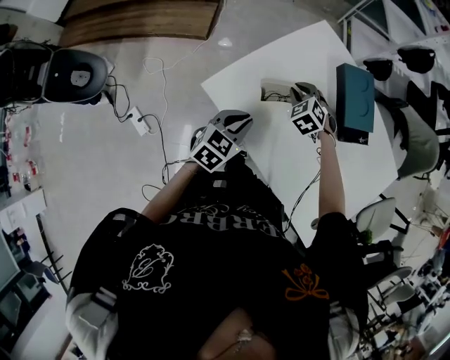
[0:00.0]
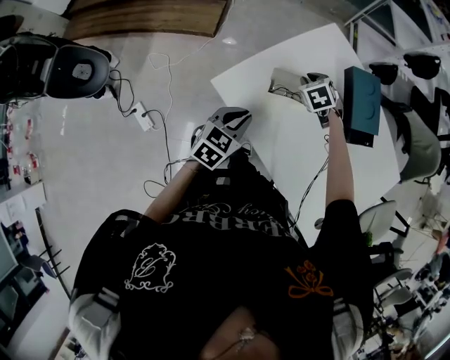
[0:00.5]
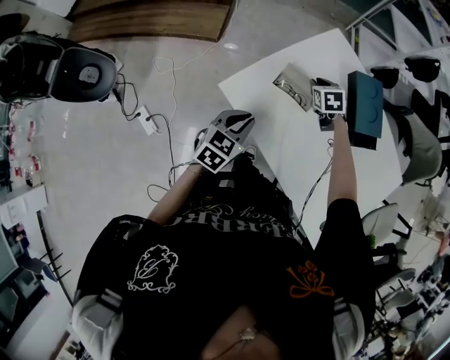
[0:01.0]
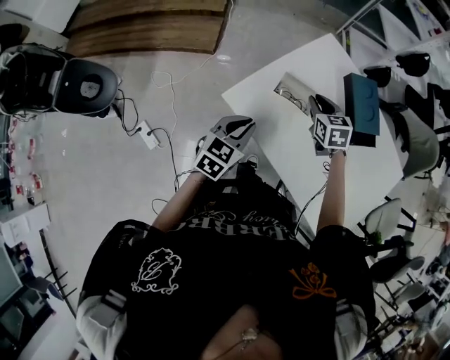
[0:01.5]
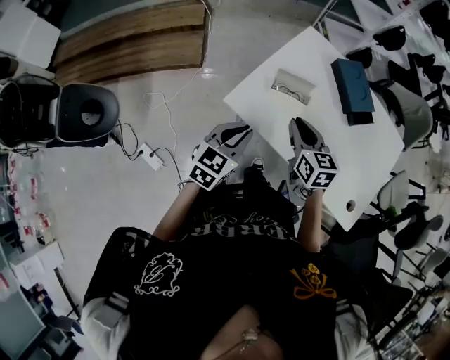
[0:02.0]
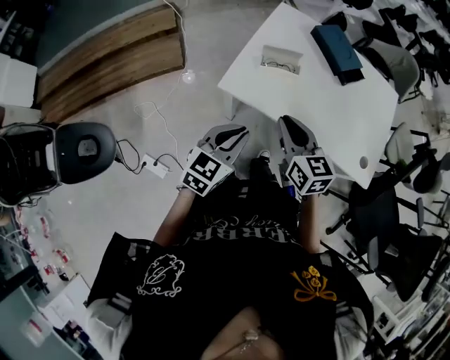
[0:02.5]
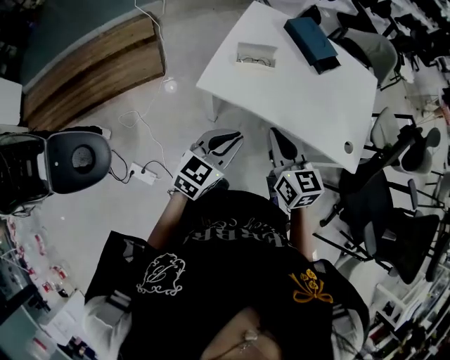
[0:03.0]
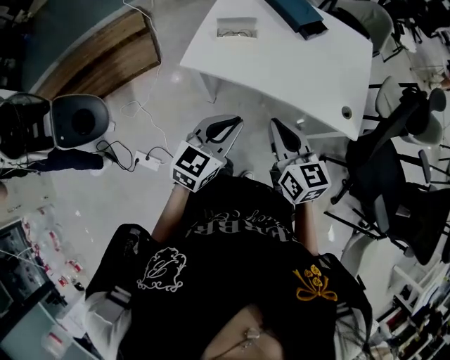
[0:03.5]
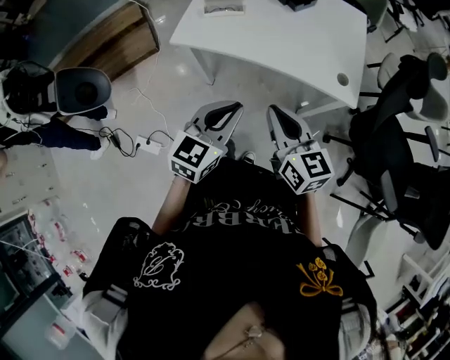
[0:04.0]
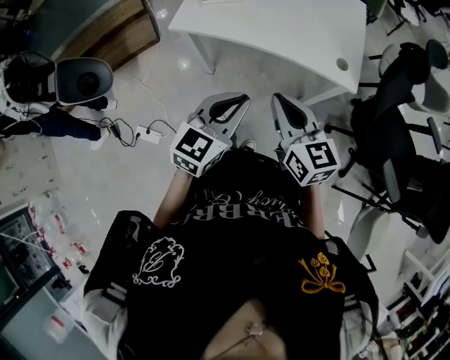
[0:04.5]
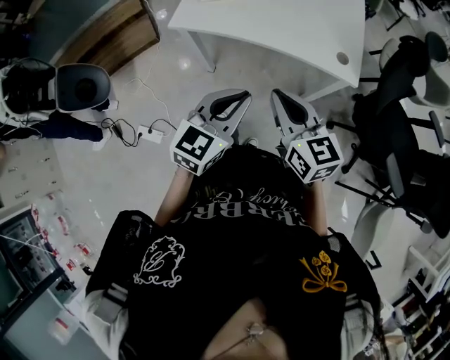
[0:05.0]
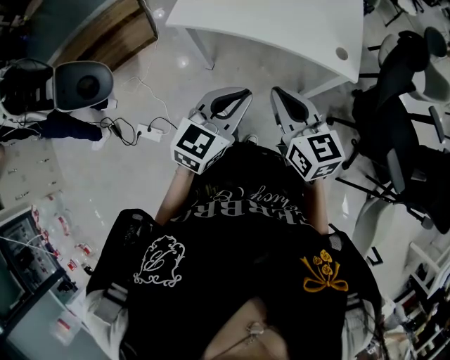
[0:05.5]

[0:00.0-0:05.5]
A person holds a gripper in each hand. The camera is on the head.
0:00.0 to 0:02.0: The right gripper moves backward and upward, approximately 25 cm, and twists about 60 degrees clockwise, seen from behind. The left gripper travels to the left, upward and backward by some 15 cm.
0:02.0 to 0:03.5: The two grippers go approximately 25 cm backward and to the right.
0:03.5 to 0:05.5: Both grippers travel together backward and to the right, about 15 cm.

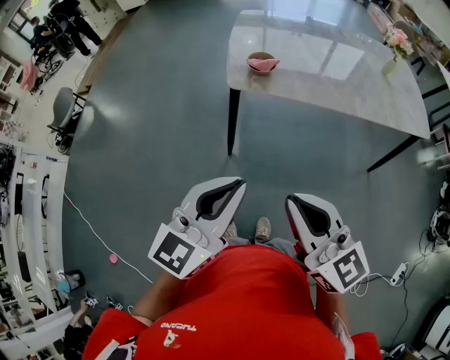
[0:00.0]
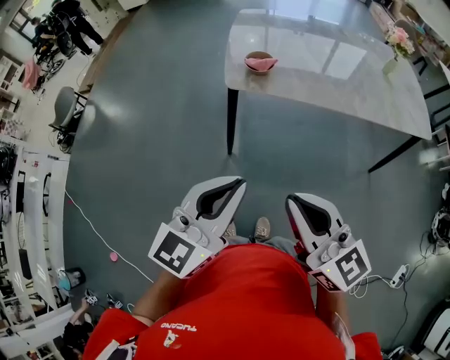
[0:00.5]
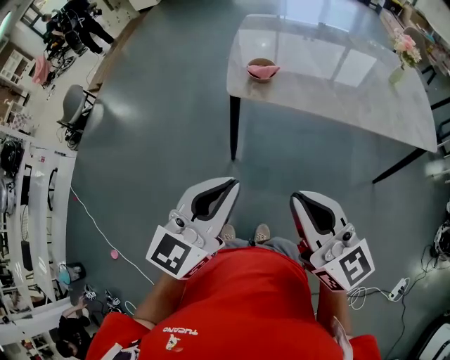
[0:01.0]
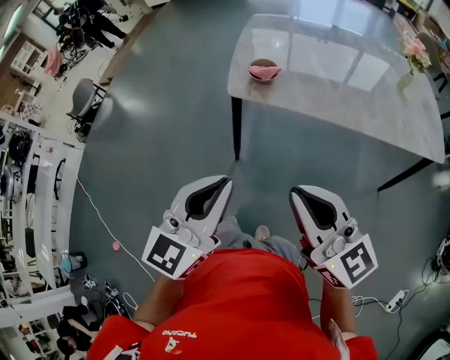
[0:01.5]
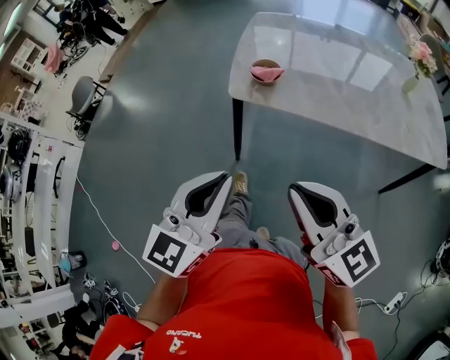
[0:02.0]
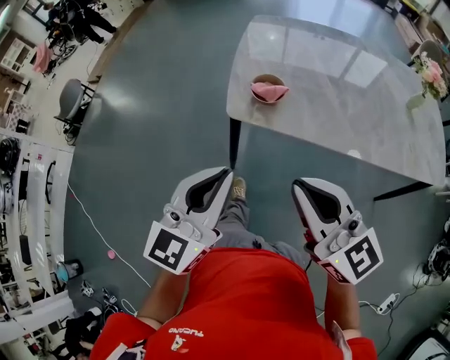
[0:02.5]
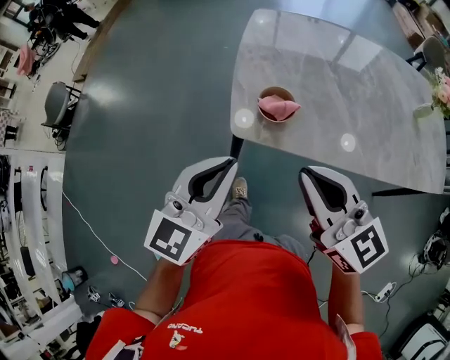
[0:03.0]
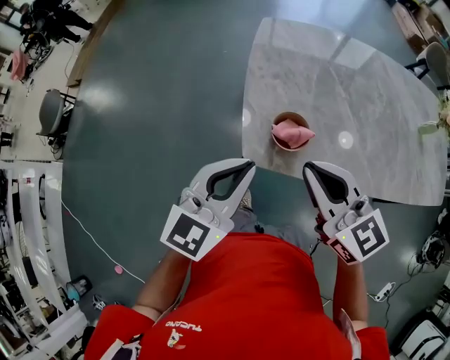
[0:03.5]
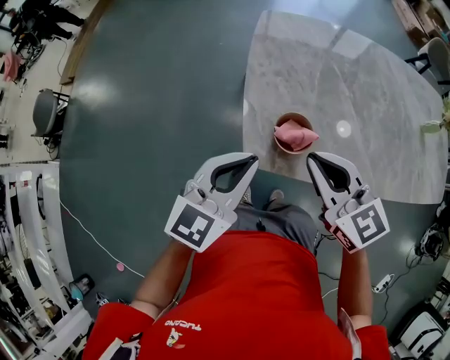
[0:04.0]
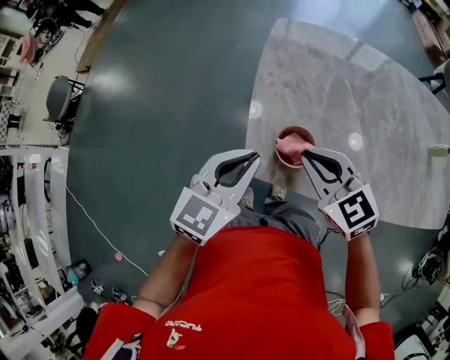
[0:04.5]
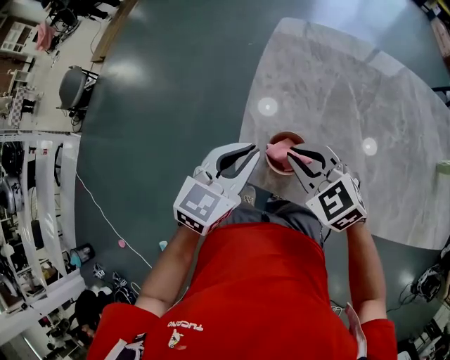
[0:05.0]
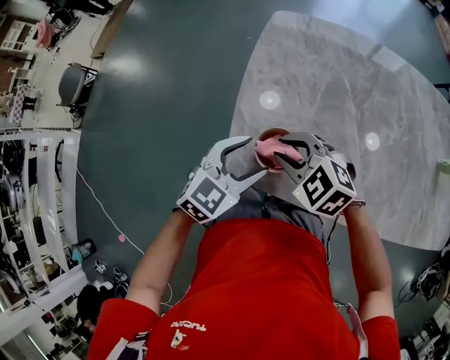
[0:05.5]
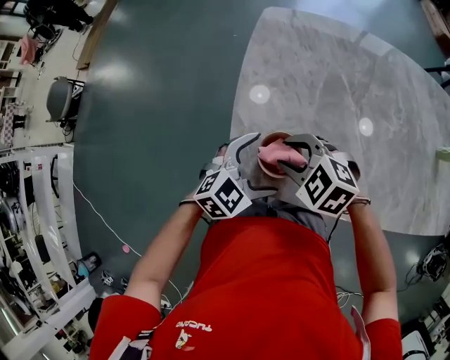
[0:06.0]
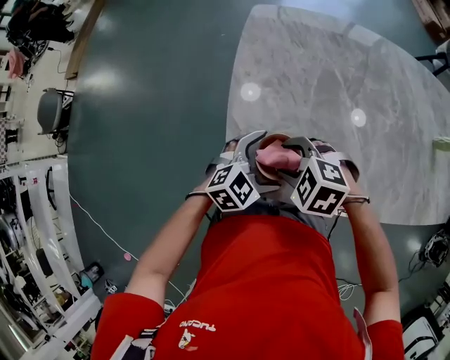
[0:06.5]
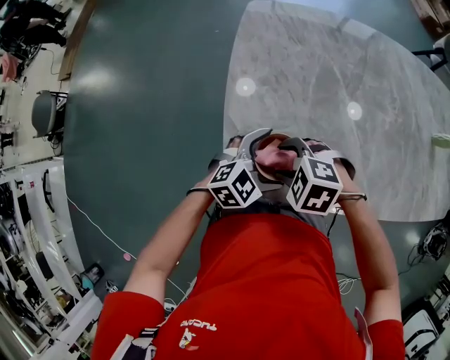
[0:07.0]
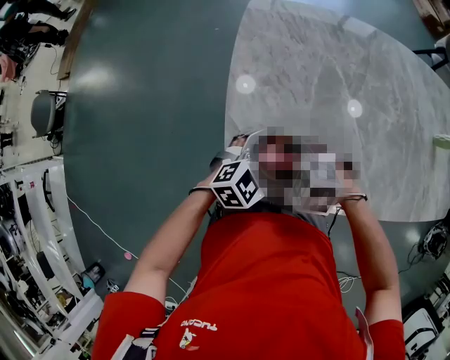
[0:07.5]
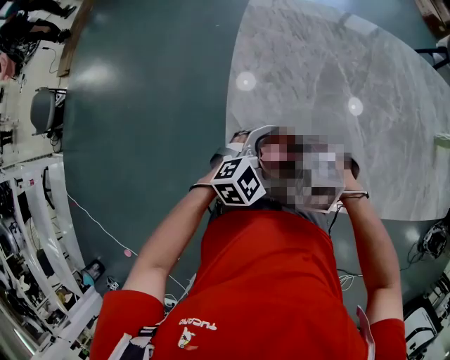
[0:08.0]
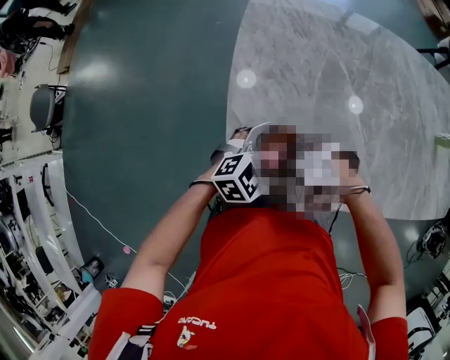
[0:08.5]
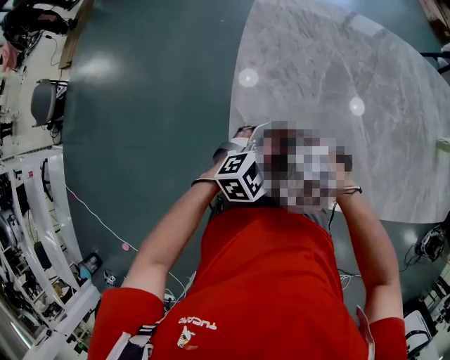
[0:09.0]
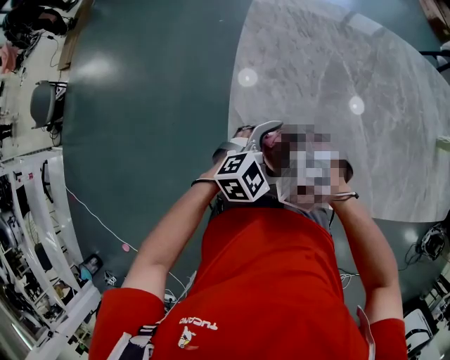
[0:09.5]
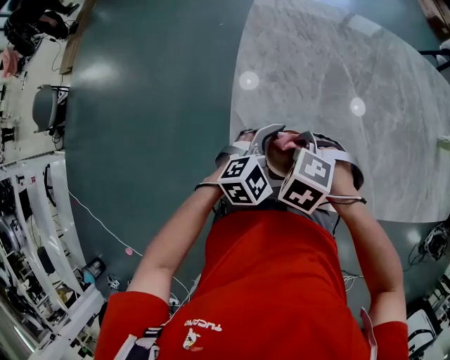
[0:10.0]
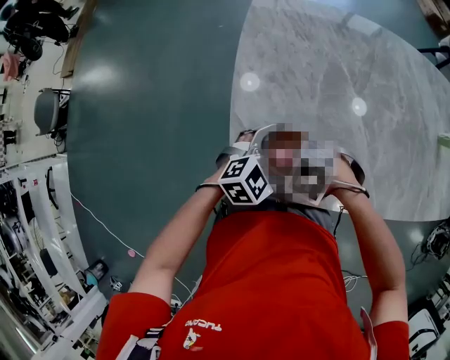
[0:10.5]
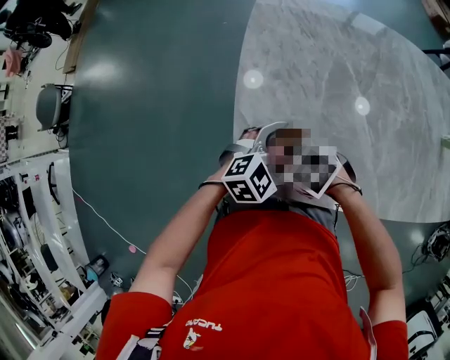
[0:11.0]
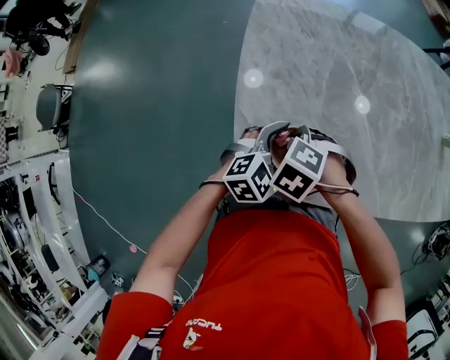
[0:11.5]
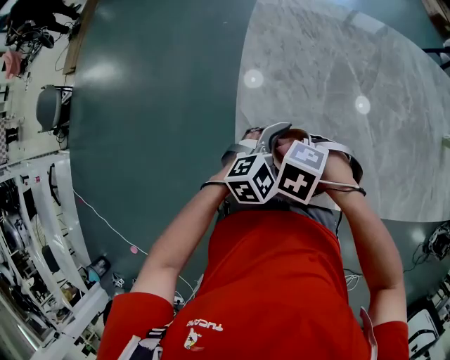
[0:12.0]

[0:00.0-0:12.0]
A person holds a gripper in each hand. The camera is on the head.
0:00.0 to 0:02.0: The right gripper travels forward and to the right by approximately 10 cm. Meanwhile the left gripper travels forward by approximately 5 cm.
0:02.0 to 0:04.0: Both grippers move forward, roughly 35 cm. The right gripper changes its angle by roughly 20 degrees.
0:04.0 to 0:06.0: Both grippers travel together downward, about 15 cm. The right gripper points its fingers roughly 30 degrees further downward, and opens. The left gripper turns by some 30 degrees, and opens its fingers.
0:06.0 to 0:08.0: The right gripper is displaced downward by approximately 5 cm. Meanwhile the left gripper ends up approximately 5 cm from where it was.
0:08.0 to 0:10.0: There are only small adjustments of the grippers.

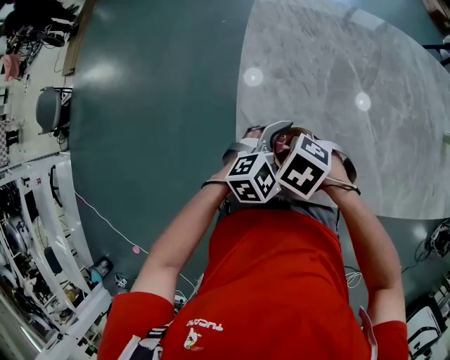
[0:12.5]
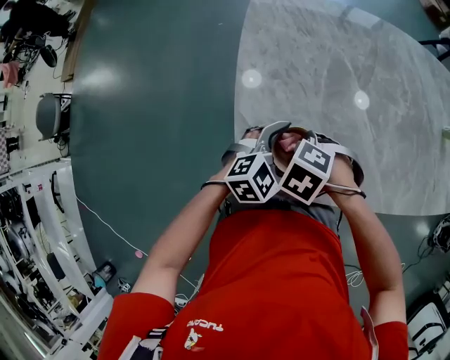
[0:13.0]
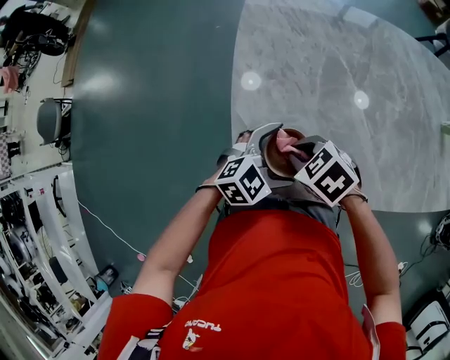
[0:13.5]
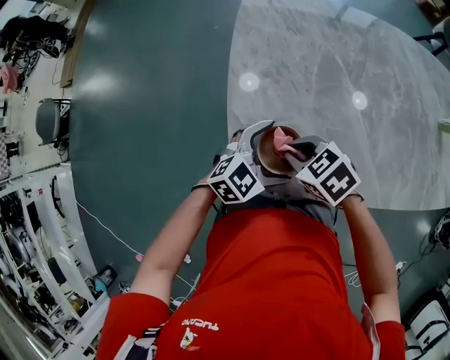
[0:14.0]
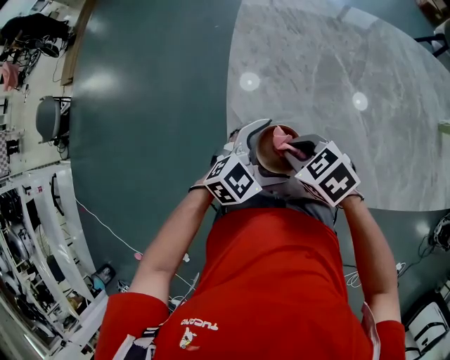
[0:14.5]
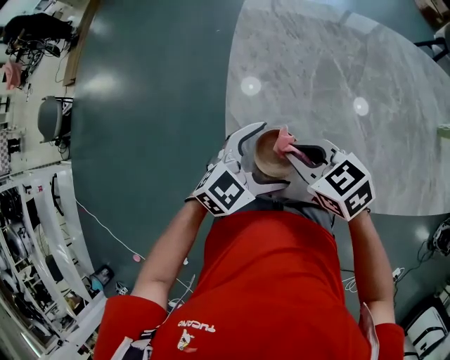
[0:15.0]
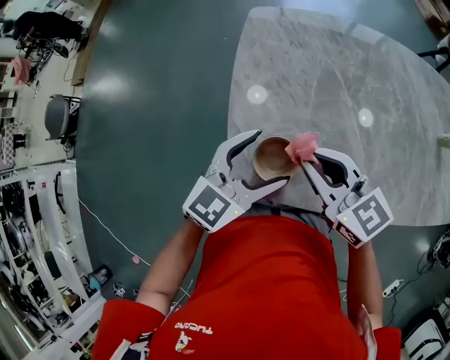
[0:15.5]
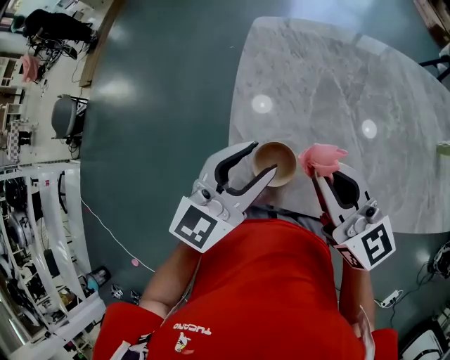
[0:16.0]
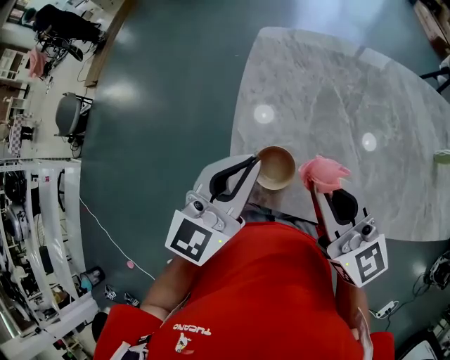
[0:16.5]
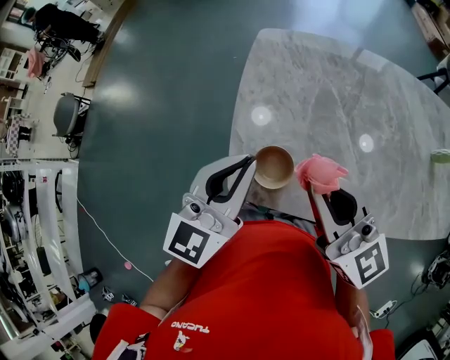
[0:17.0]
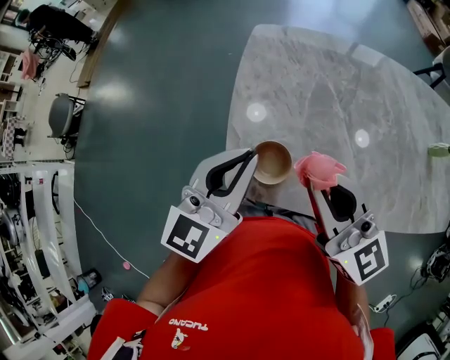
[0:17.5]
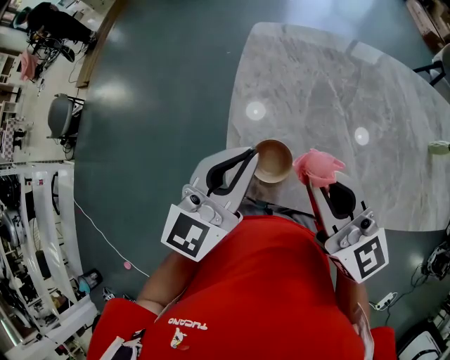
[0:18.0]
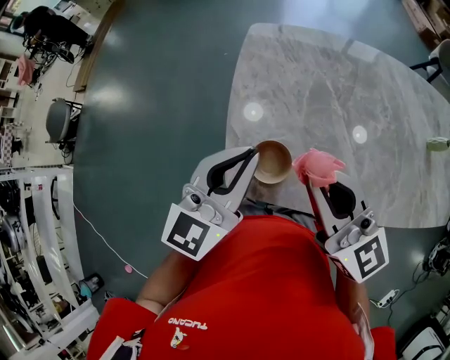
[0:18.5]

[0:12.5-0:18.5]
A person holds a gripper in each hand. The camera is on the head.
0:12.5 to 0:14.5: The right gripper changes its angle by roughly 30 degrees.
0:14.5 to 0:16.5: The two grippers go about 25 cm upward. The right gripper points its fingers approximately 60 degrees further upward; the left gripper swivels about 40 degrees, and closes.
0:16.5 to 0:18.5: The grippers make only small movements.

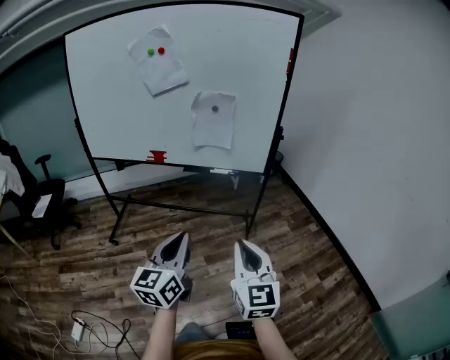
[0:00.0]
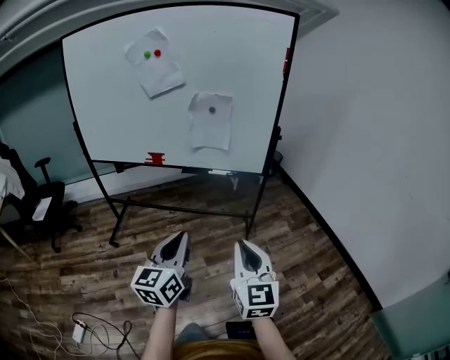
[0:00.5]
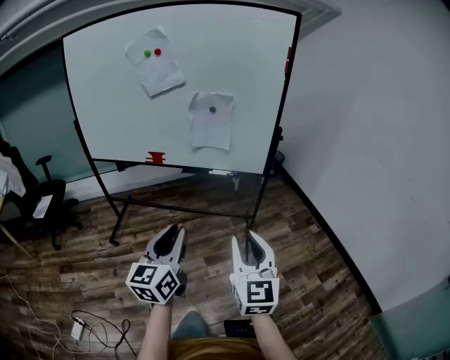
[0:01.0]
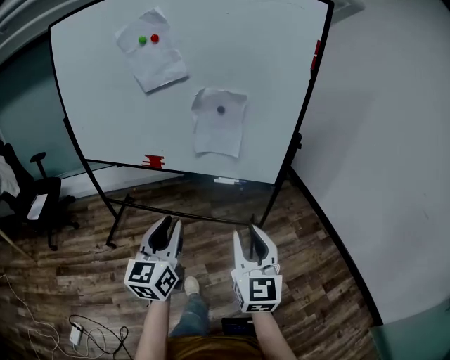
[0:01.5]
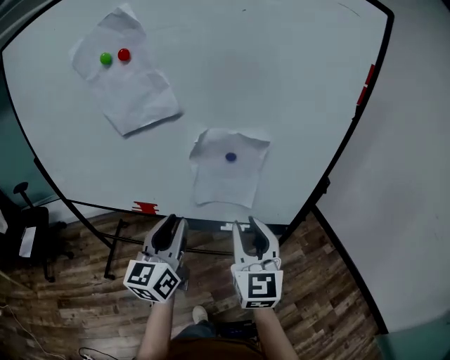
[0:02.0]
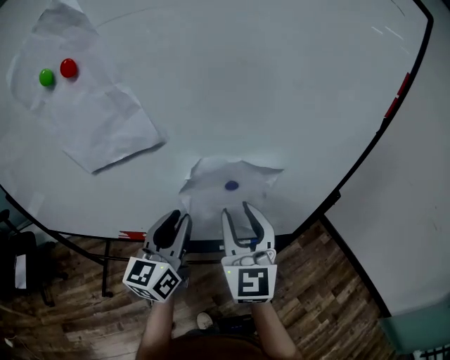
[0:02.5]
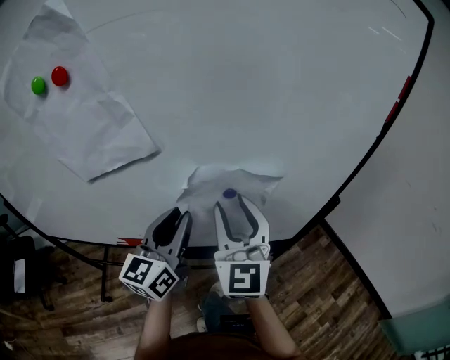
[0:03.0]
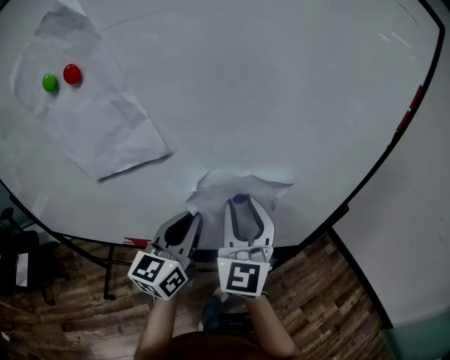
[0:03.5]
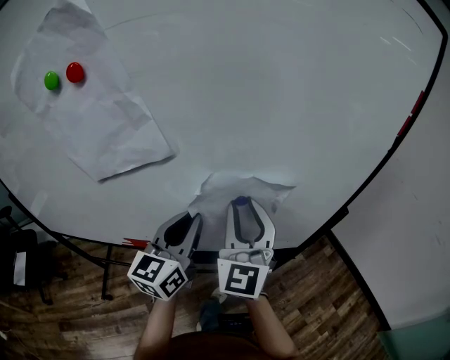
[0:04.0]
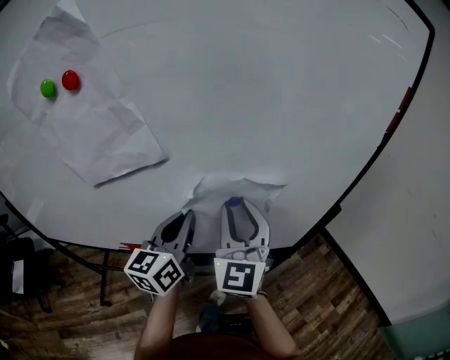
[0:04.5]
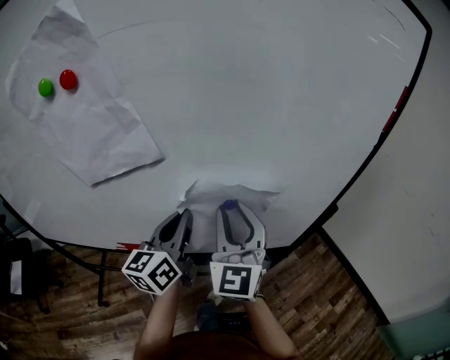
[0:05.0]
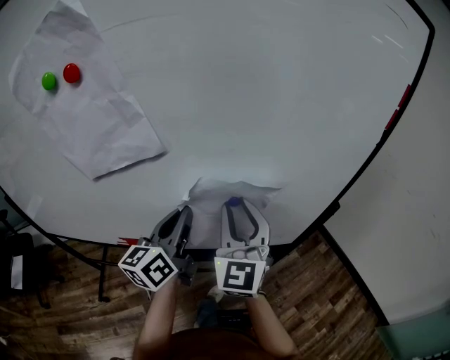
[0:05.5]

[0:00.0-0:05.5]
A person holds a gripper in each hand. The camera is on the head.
0:00.0 to 0:02.0: Both grippers are carried forward, roughly 40 cm. The right gripper opens.
0:02.0 to 0:03.5: The two grippers go about 15 cm forward.
0:03.5 to 0:05.5: The grippers move only a little.
